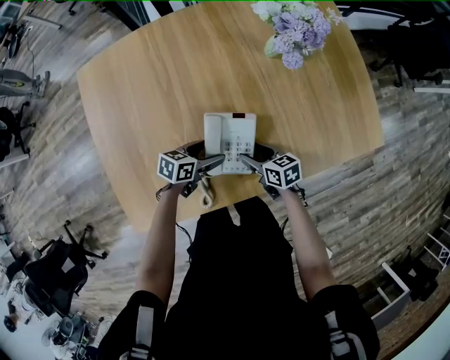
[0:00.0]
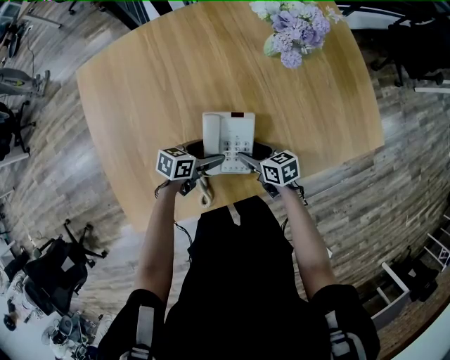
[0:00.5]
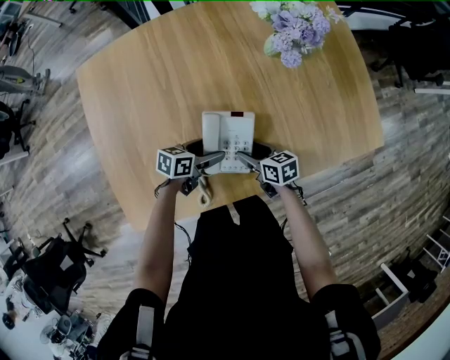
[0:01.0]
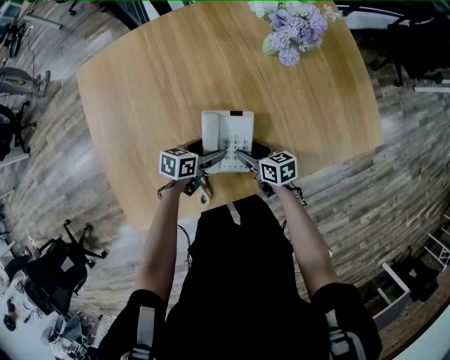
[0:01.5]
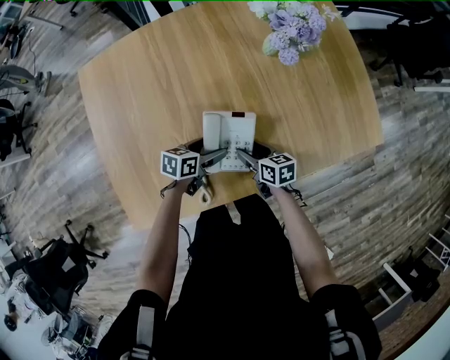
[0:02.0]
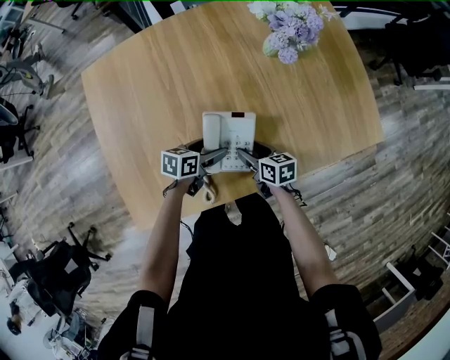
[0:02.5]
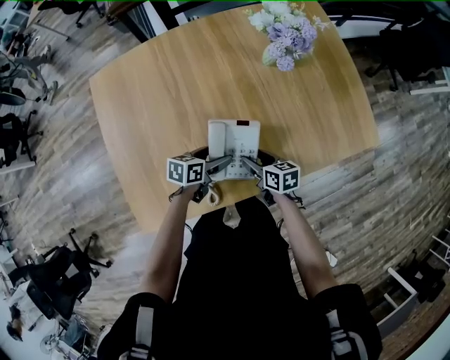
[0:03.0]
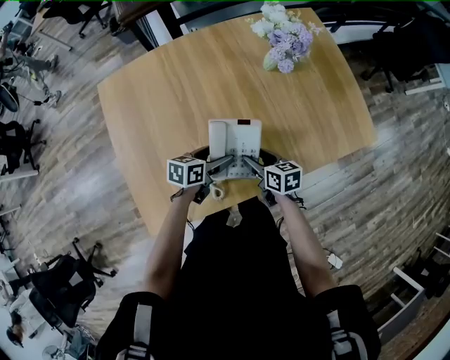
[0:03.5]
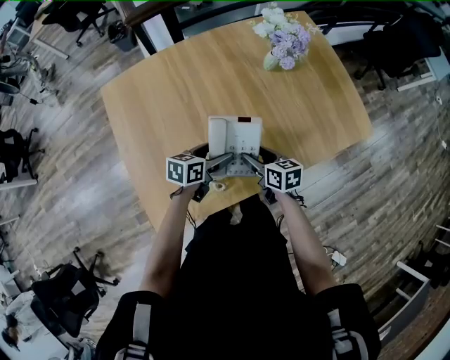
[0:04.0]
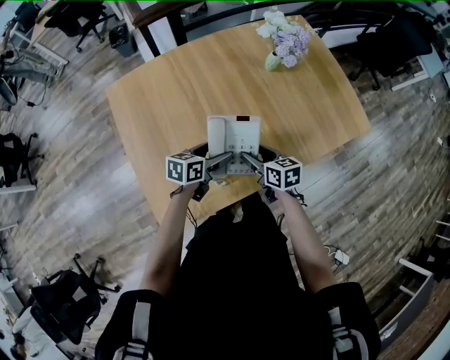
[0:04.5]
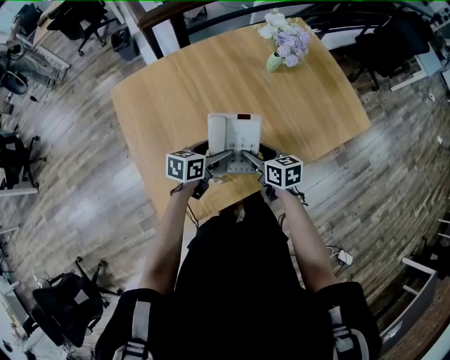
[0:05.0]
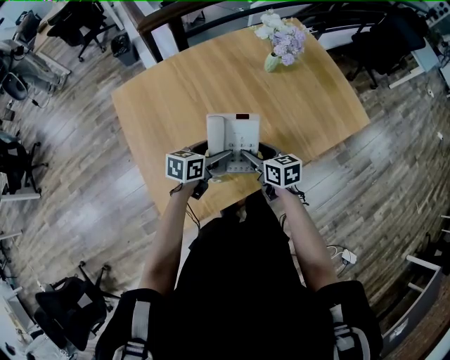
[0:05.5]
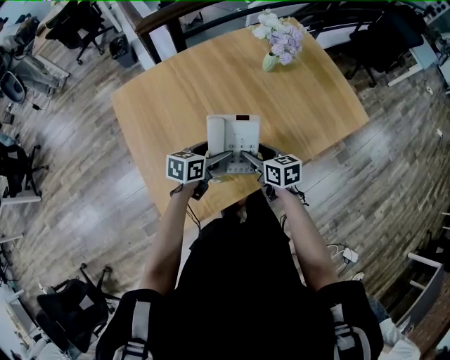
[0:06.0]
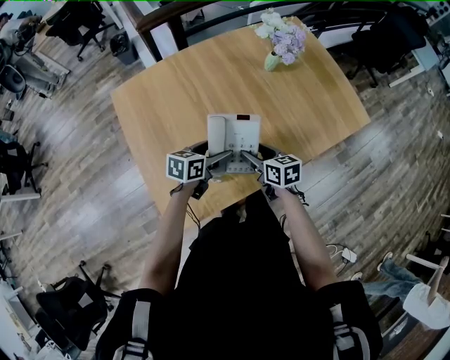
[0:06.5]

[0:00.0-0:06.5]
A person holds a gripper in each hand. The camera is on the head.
0:00.0 to 0:02.0: The grippers stay close to where they were, moving slightly.
0:02.0 to 0:04.5: The right gripper moves upward, to the left and backward, about 15 cm. The left gripper moves upward and to the left, some 15 cm.
0:04.5 to 0:06.5: The grippers make only small movements.

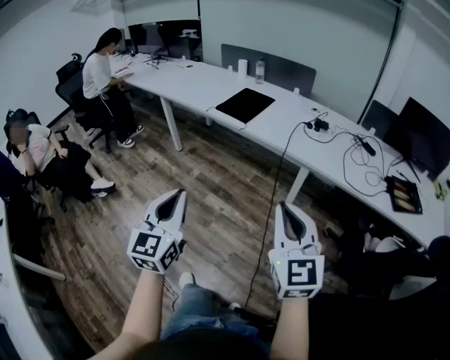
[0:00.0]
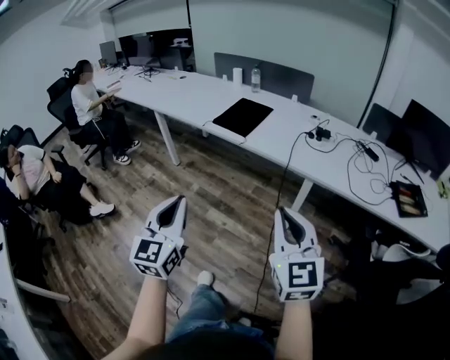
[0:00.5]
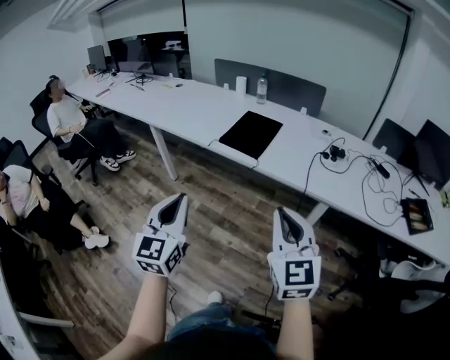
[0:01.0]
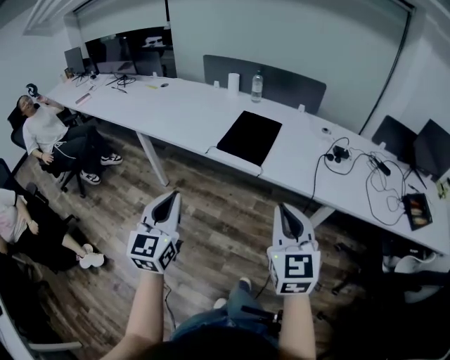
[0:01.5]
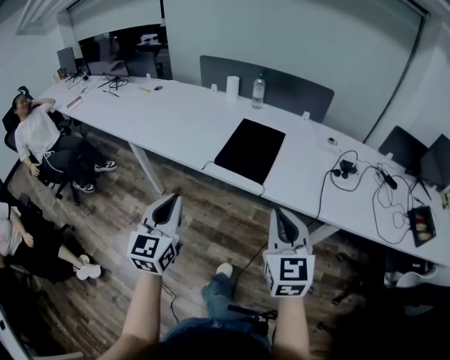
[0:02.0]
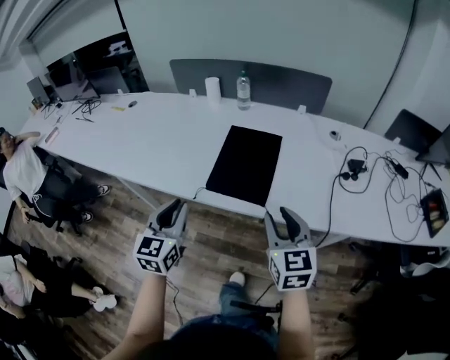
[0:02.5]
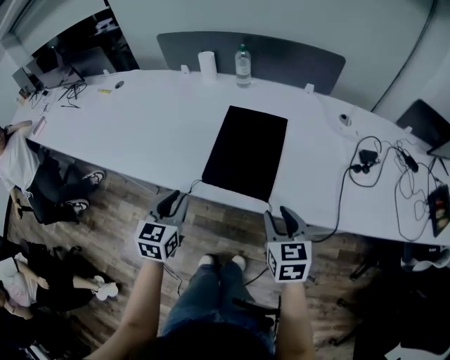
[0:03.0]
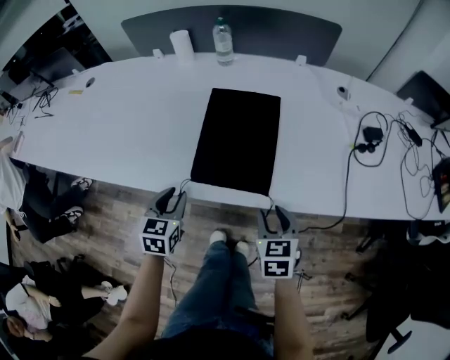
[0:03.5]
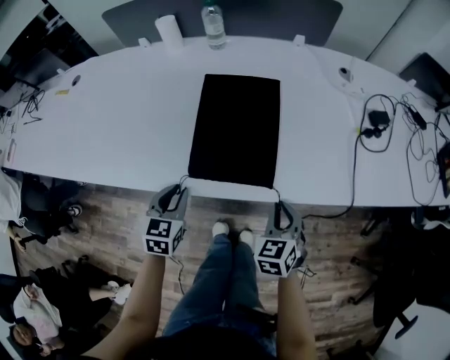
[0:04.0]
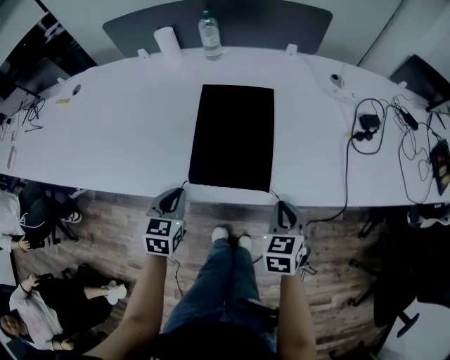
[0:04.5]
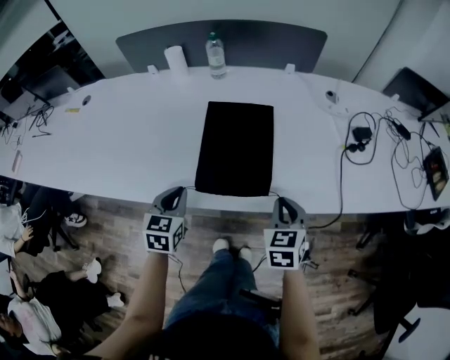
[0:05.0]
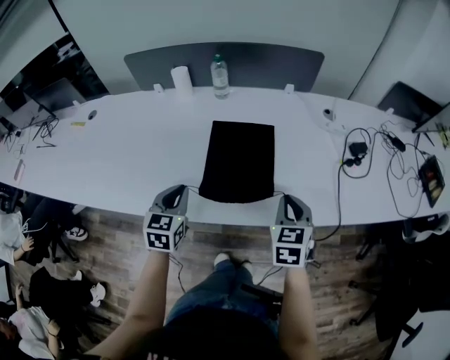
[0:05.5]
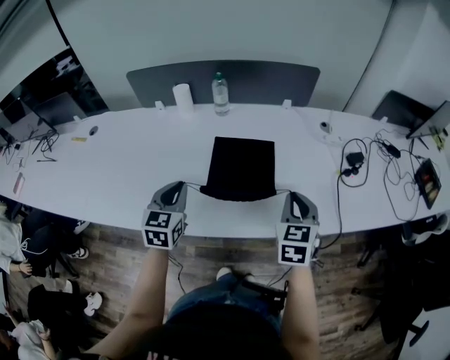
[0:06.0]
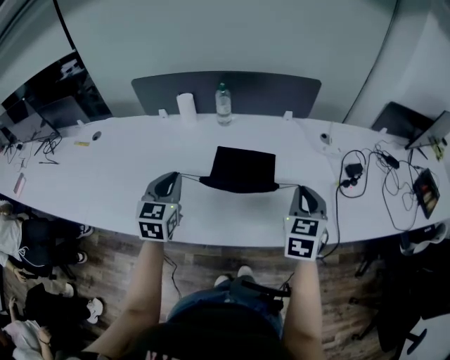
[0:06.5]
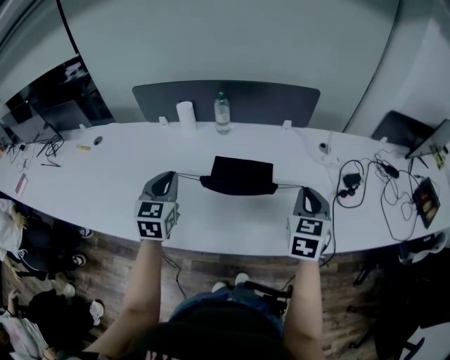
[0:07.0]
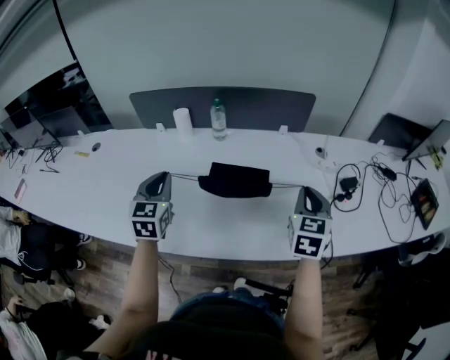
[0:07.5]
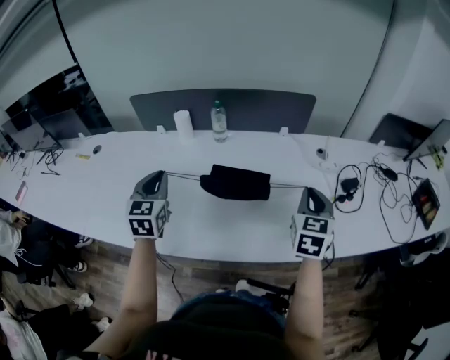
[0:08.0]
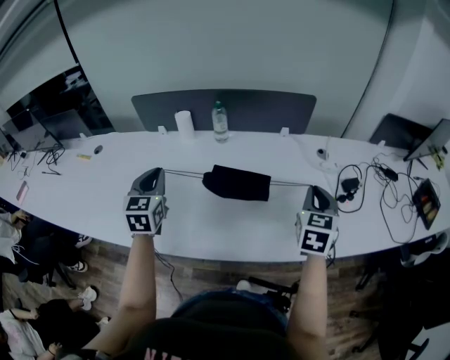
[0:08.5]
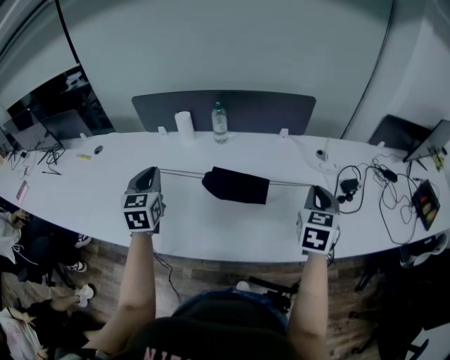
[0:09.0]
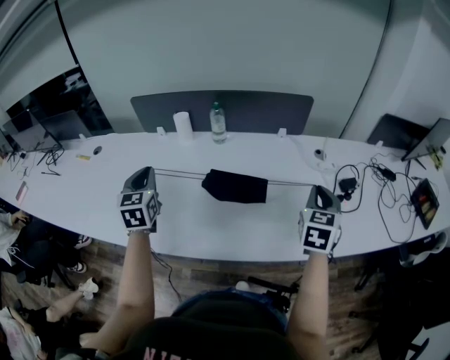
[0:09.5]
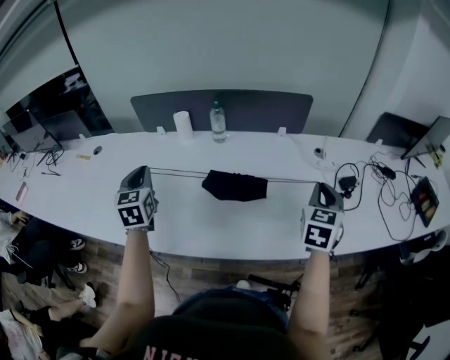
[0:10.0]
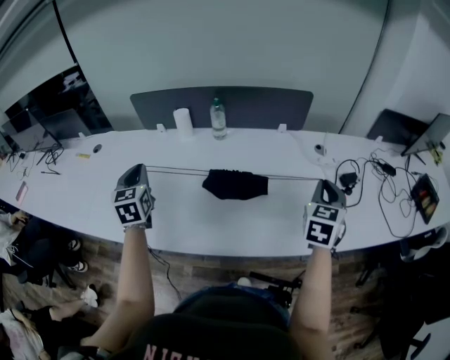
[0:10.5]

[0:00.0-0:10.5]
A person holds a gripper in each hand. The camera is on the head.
0:00.0 to 0:02.0: The pair of grippers is taken forward and to the left, approximately 50 cm.
0:02.0 to 0:04.0: The right gripper shifts about 35 cm downward and forward, tips its fingers downward by roughly 30 degrees, and opens, then closes again. The left gripper heads forward and downward, covering about 40 cm, points its fingers some 30 degrees further downward, and opens.
0:04.0 to 0:06.5: The two grippers go some 25 cm upward and forward. The right gripper rotates approximately 20 degrees.
0:06.5 to 0:08.5: The left gripper moves approximately 5 cm. Meanwhile the right gripper heads to the right, covering approximately 5 cm.
0:08.5 to 0:10.5: The left gripper shifts approximately 5 cm to the left.

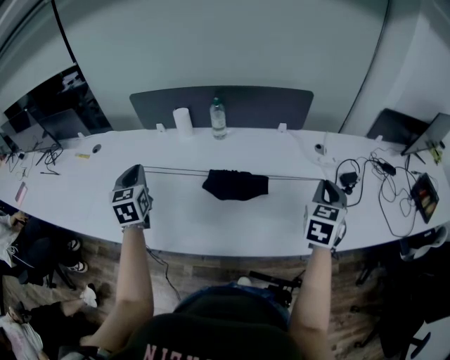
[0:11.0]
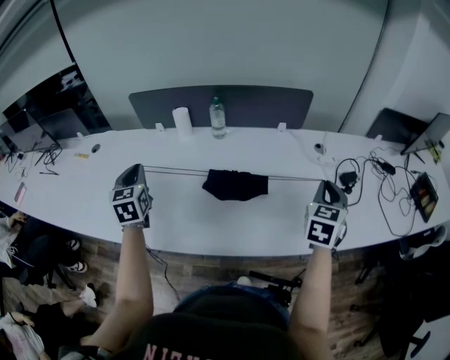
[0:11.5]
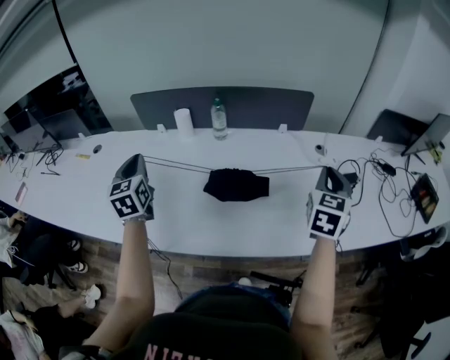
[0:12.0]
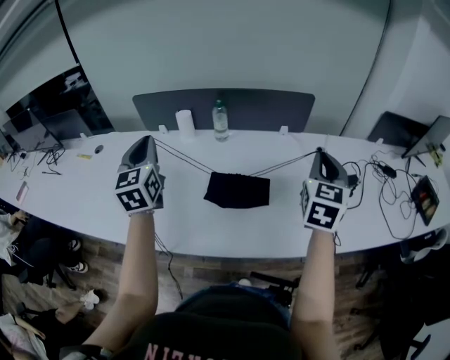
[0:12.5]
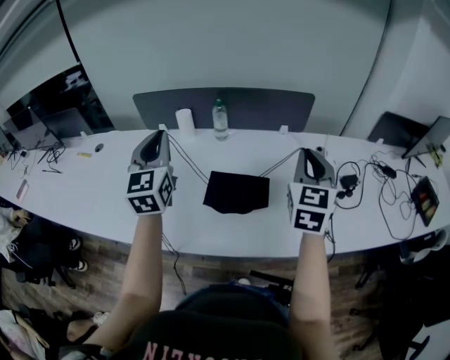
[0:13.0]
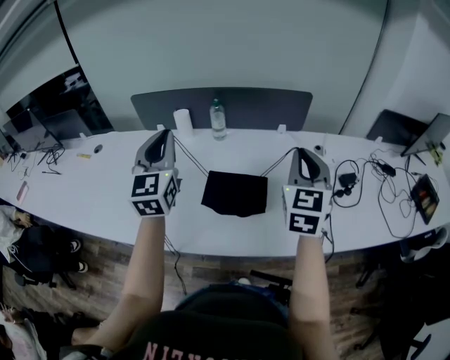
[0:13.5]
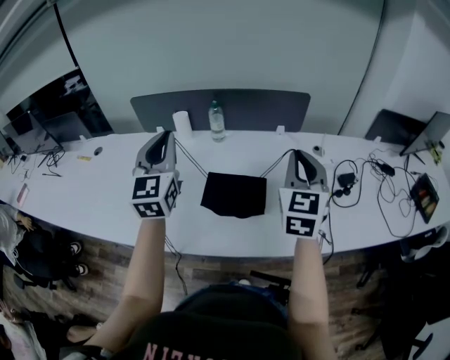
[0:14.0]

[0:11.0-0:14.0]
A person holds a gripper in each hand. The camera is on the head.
0:11.0 to 0:12.5: The left gripper shifts about 10 cm upward and to the right. Meanwhile the right gripper is displaced upward by some 10 cm.
0:12.5 to 0:14.0: The right gripper shifts some 5 cm to the left. Meanwhile the left gripper shifts approximately 10 cm to the right.

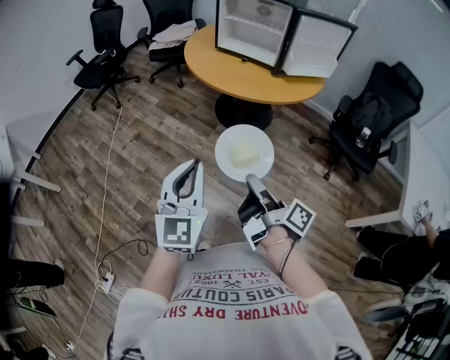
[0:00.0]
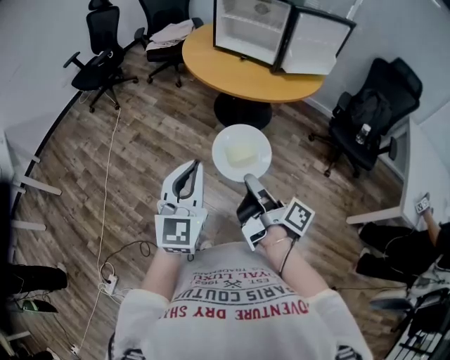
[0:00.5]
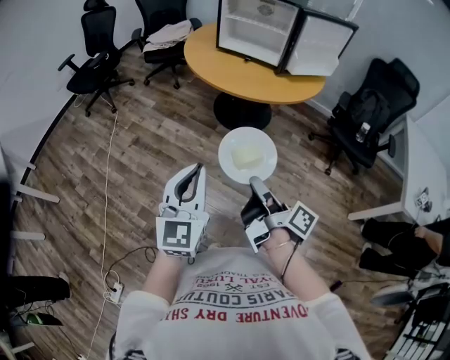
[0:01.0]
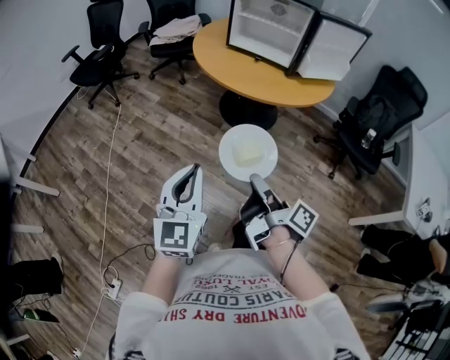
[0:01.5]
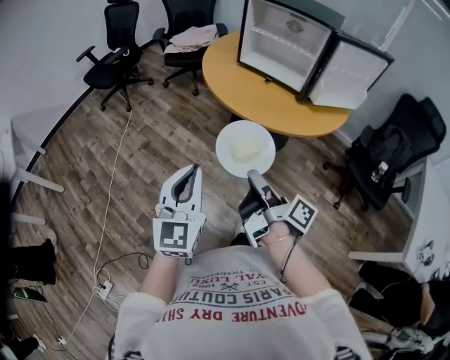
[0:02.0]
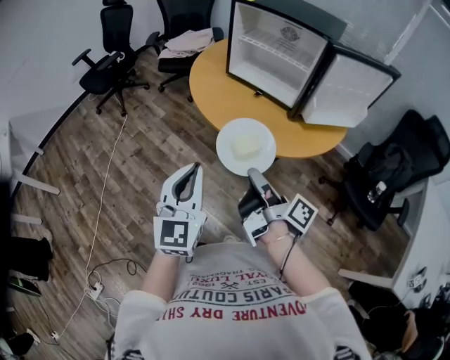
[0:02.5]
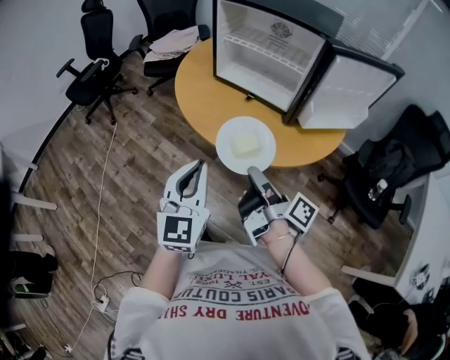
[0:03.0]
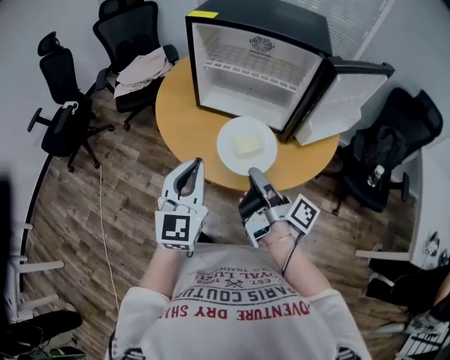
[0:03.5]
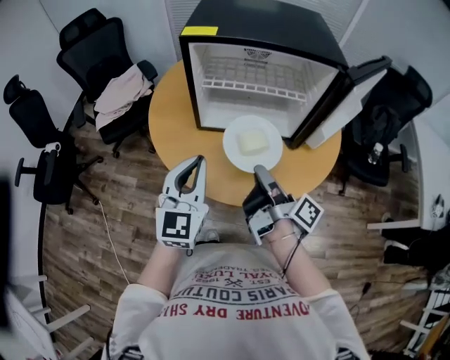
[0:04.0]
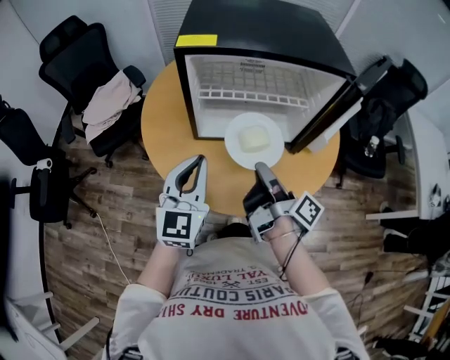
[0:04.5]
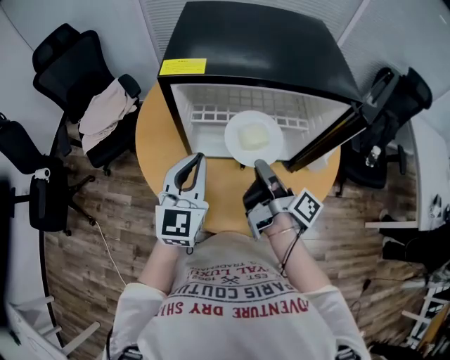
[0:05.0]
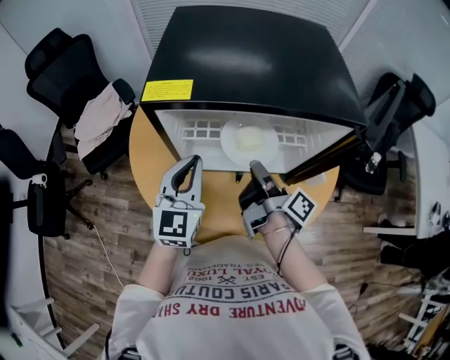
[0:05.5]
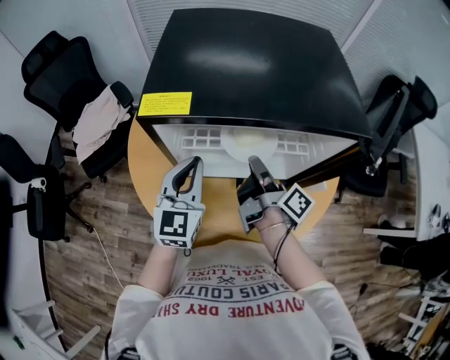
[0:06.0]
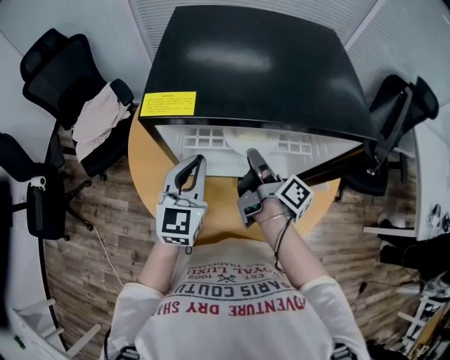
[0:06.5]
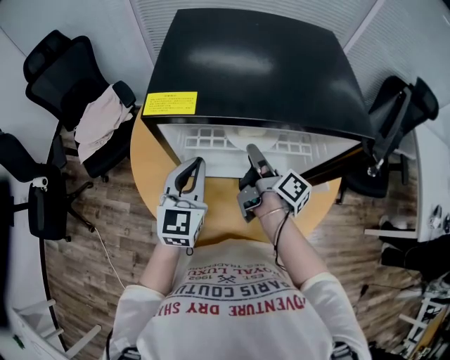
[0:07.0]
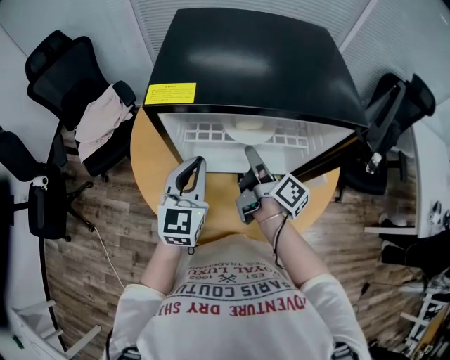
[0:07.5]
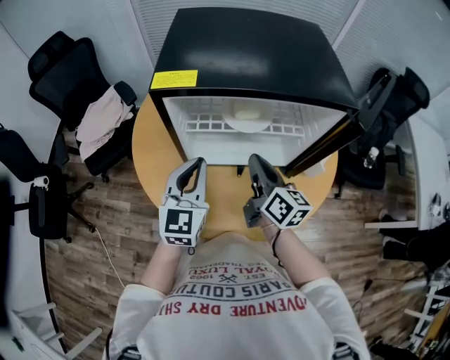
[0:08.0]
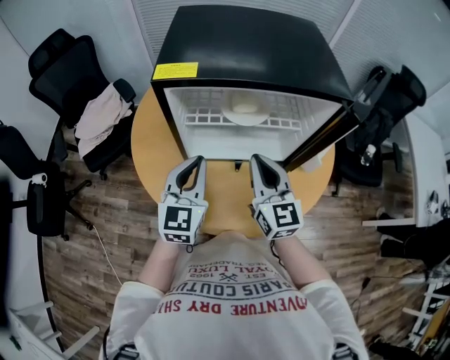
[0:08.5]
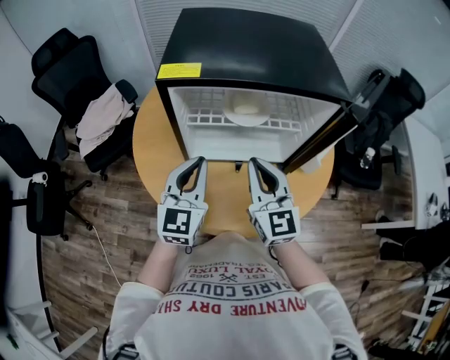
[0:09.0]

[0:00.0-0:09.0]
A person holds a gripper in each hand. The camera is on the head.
0:00.0 to 0:02.0: The left gripper changes place by roughly 15 cm.
0:02.0 to 0:04.5: The left gripper changes place by approximately 60 cm, and turns by roughly 40 degrees.
0:04.5 to 0:07.0: The left gripper shifts by approximately 15 cm.
0:07.0 to 0:09.0: The left gripper shifts by approximately 10 cm.
